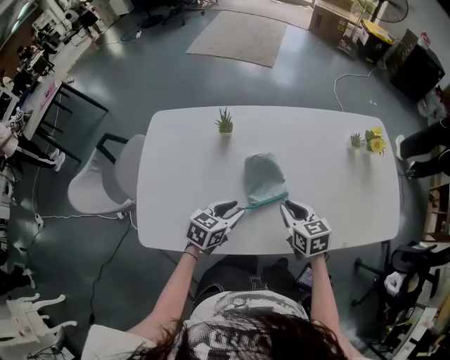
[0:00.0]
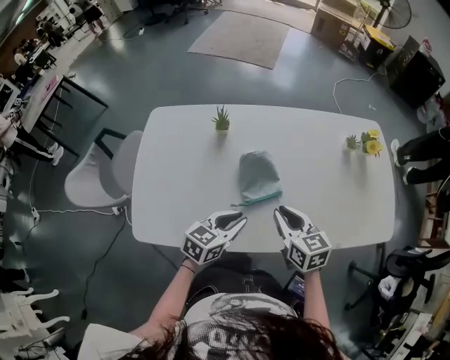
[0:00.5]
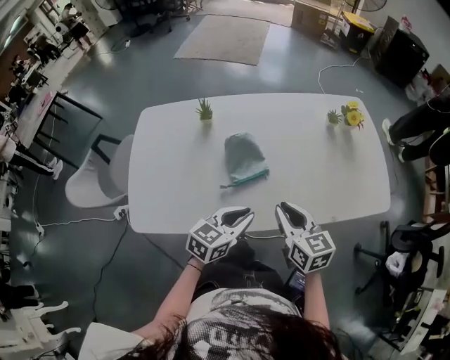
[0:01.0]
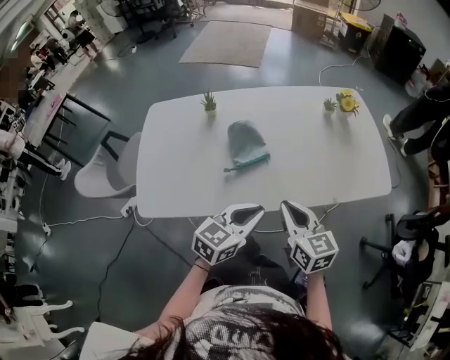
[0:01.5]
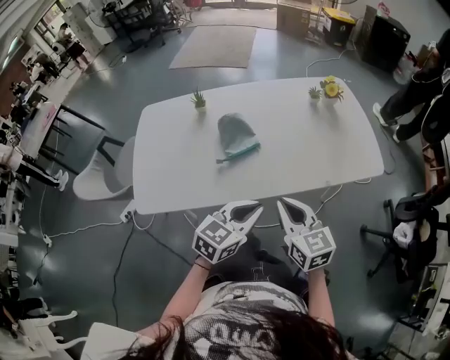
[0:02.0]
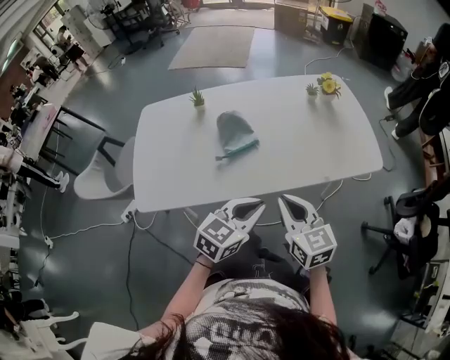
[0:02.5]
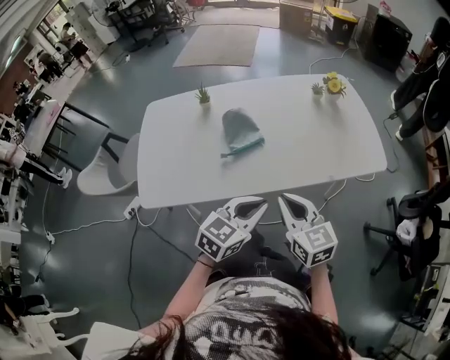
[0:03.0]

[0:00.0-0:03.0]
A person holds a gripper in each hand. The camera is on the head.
0:00.0 to 0:01.5: The right gripper travels backward, upward and to the right by some 20 cm, while the left gripper is displaced backward, to the right and upward by some 25 cm, and closes.
0:01.5 to 0:03.0: Both grippers move backward, approximately 5 cm.

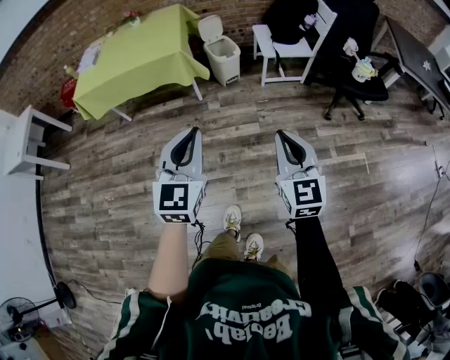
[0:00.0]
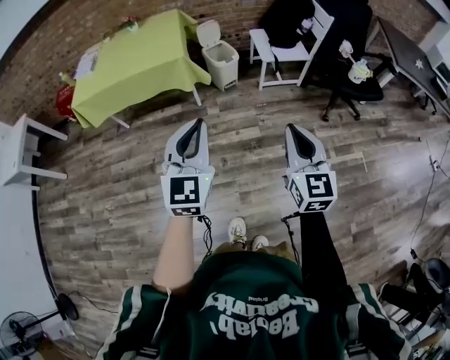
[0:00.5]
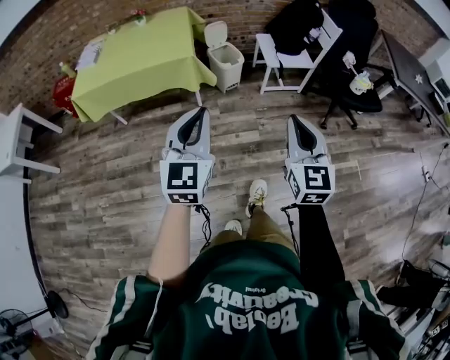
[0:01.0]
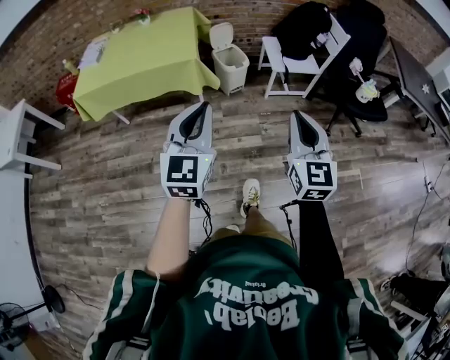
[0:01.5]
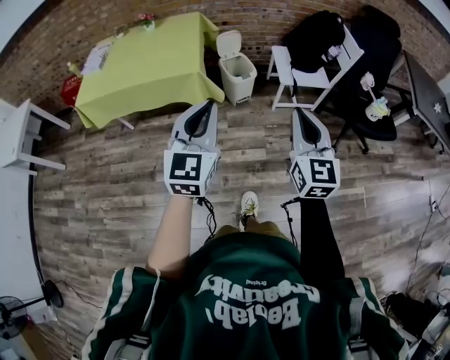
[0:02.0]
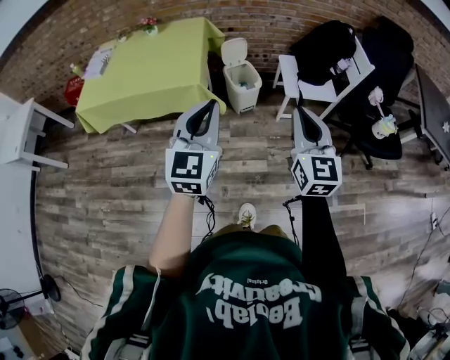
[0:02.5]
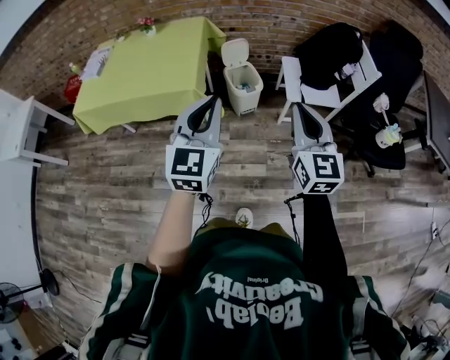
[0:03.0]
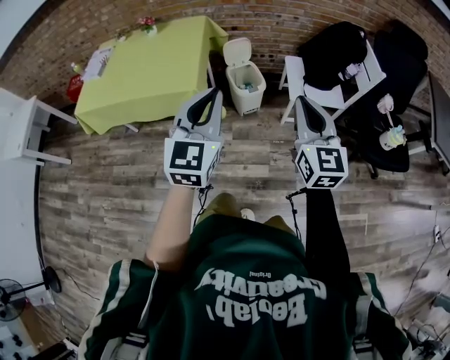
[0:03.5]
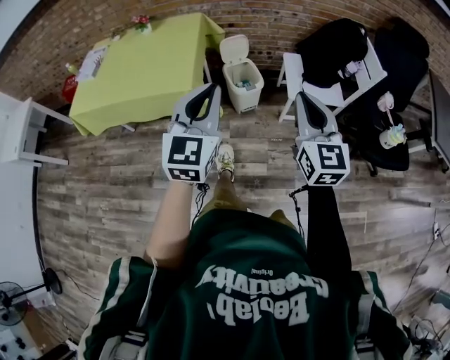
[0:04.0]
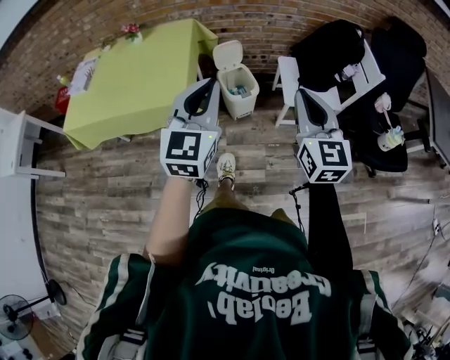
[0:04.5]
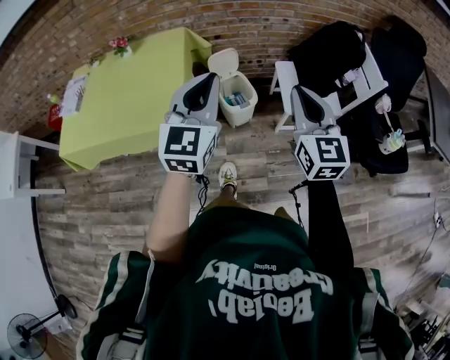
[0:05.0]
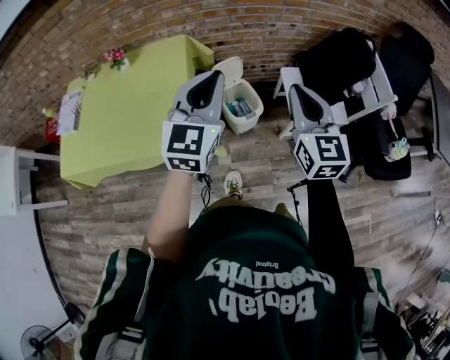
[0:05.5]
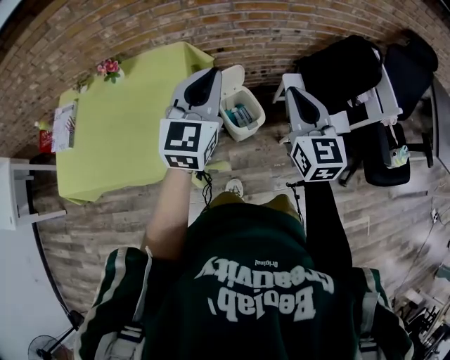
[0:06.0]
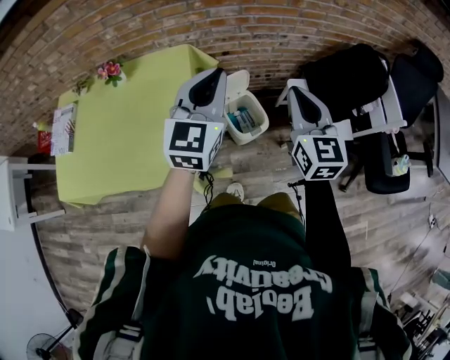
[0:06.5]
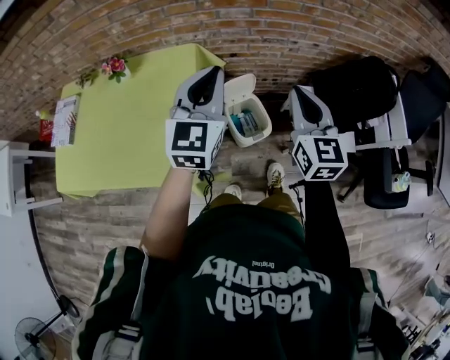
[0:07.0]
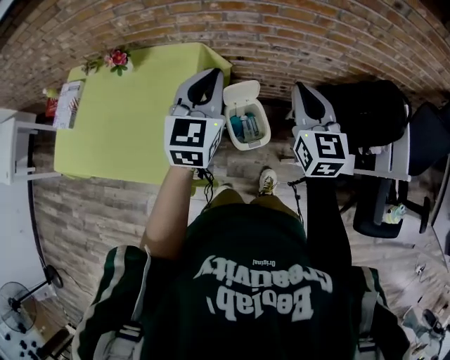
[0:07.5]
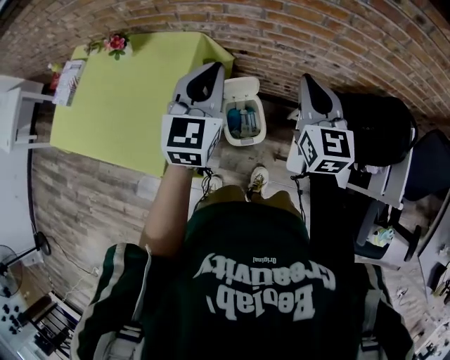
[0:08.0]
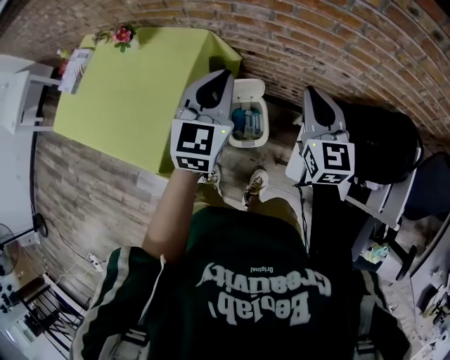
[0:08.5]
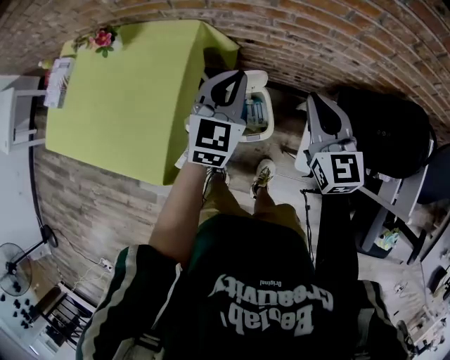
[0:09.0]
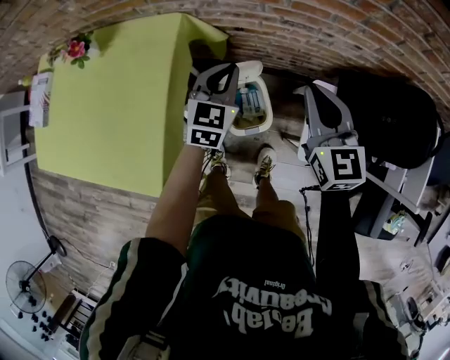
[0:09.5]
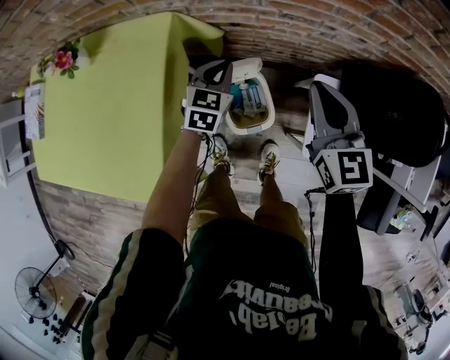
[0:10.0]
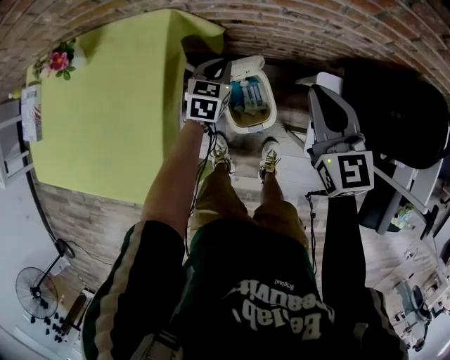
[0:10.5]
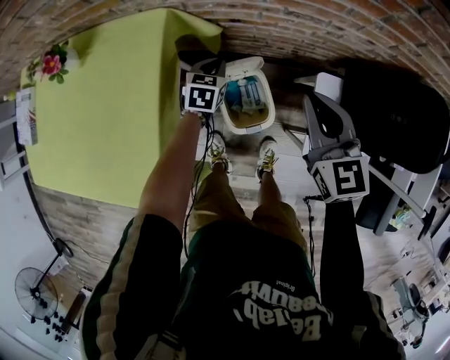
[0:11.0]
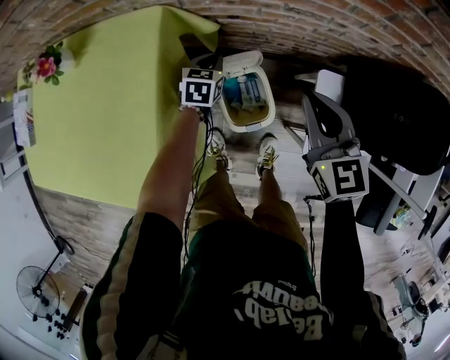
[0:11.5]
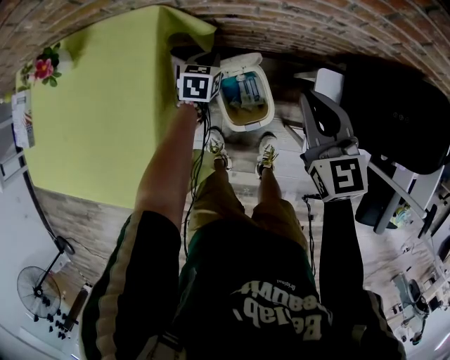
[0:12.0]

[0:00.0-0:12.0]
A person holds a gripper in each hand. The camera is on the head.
0:00.0 to 0:02.0: Both grippers travel together forward, roughly 25 cm.
0:02.0 to 0:04.0: The two grippers go some 20 cm forward.
0:04.0 to 0:06.0: Both grippers travel together forward, about 35 cm.
0:06.0 to 0:08.0: Both grippers travel together forward, about 20 cm. The left gripper turns by approximately 20 degrees.
0:08.0 to 0:10.0: The right gripper moves downward, roughly 15 cm; the left gripper shifts some 35 cm downward and forward, and changes its angle by roughly 30 degrees.
0:10.0 to 0:12.0: The right gripper heads downward, covering some 5 cm. The left gripper heads downward, covering some 15 cm.

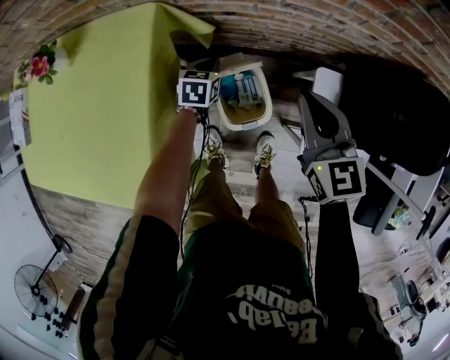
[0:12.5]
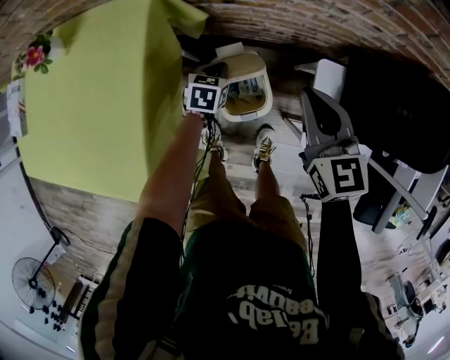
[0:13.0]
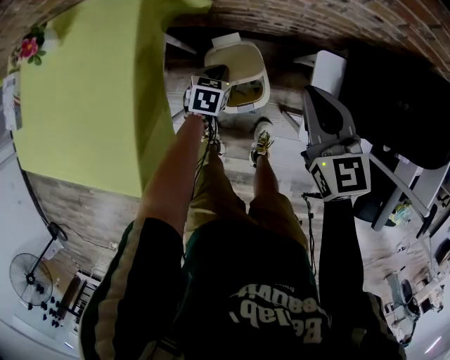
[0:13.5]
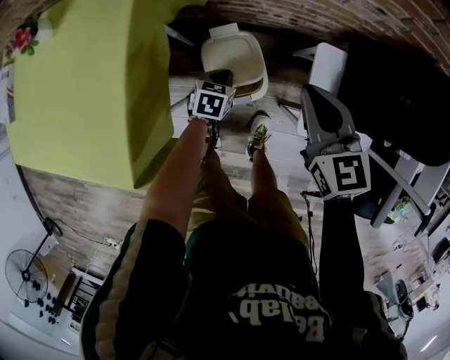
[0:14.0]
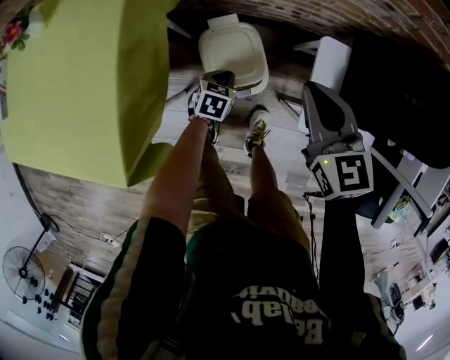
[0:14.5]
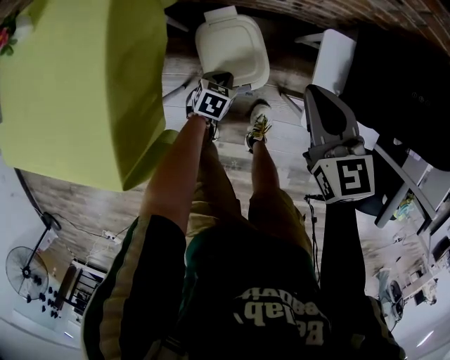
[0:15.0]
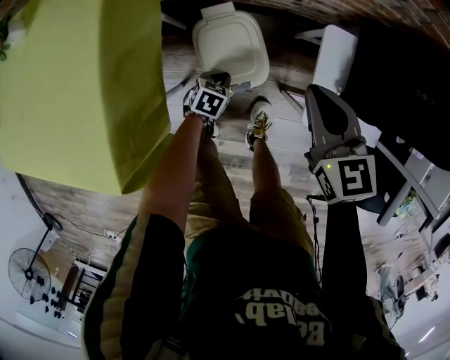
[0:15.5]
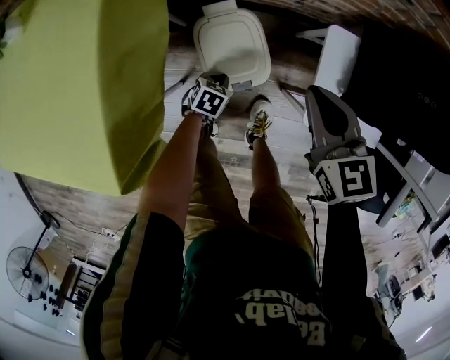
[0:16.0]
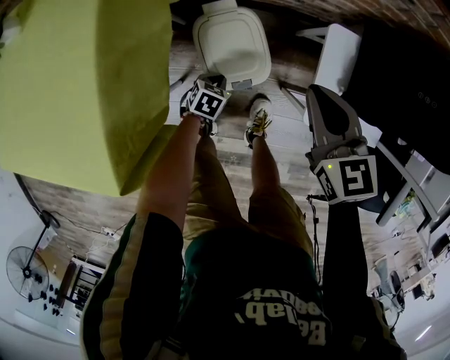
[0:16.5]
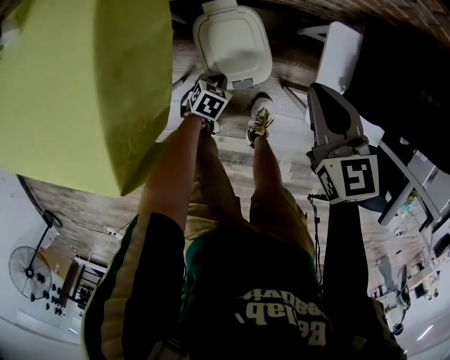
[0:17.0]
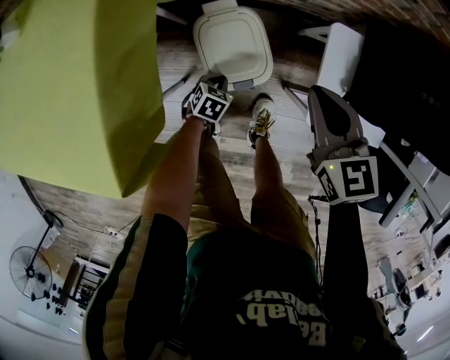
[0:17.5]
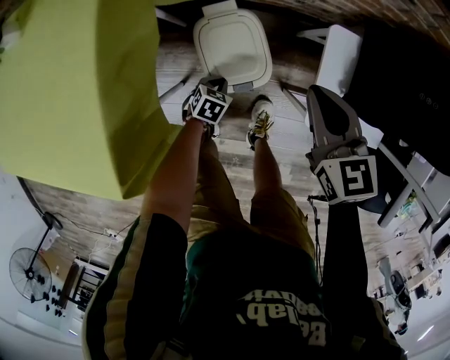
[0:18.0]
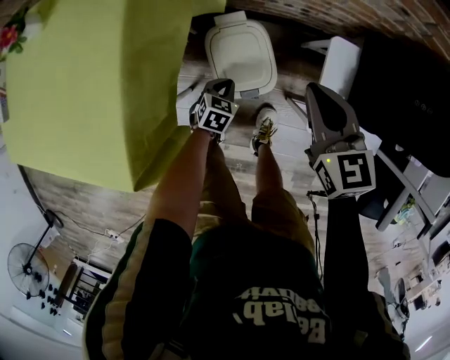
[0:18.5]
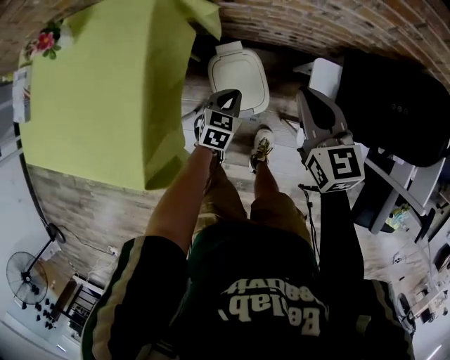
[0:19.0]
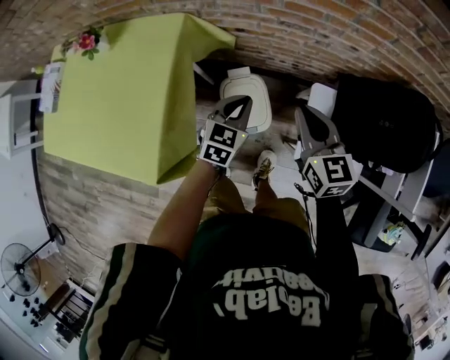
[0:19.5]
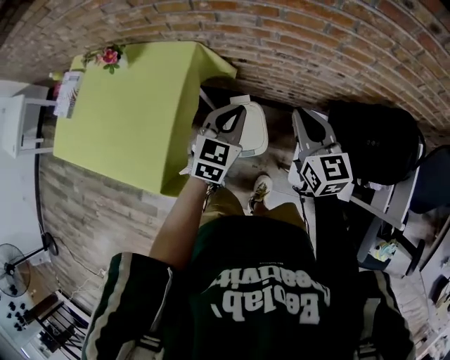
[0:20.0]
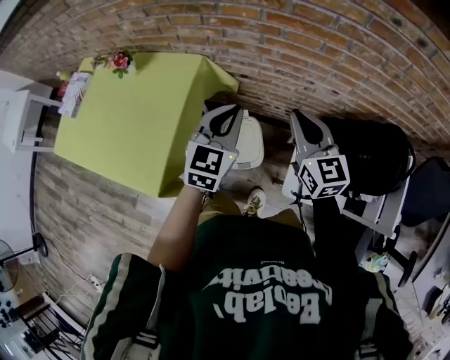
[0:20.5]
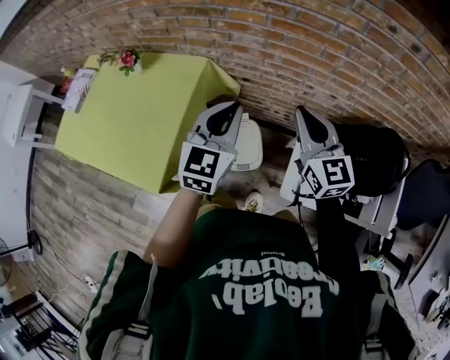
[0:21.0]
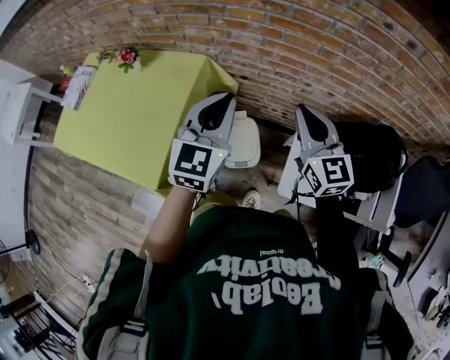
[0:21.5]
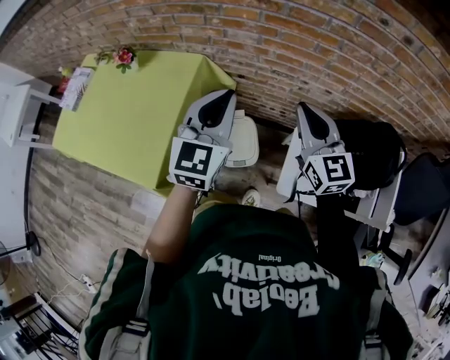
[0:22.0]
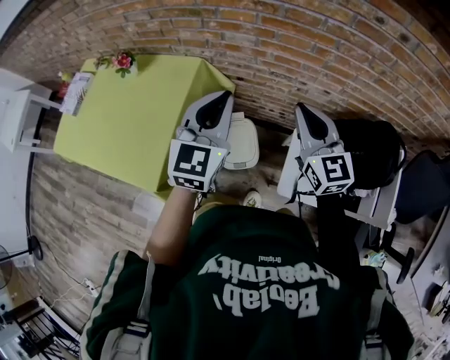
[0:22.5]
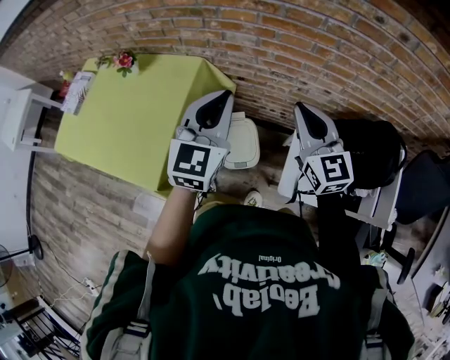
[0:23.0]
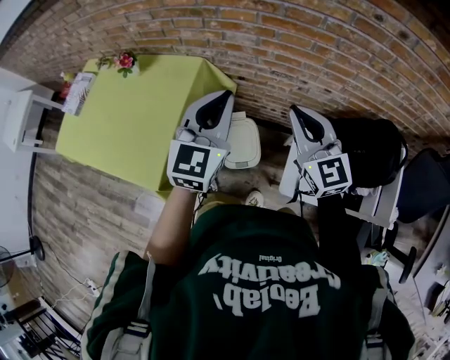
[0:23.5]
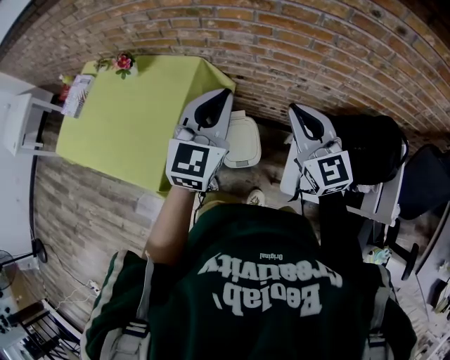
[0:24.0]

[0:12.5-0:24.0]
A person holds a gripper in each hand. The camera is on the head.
0:12.5 to 0:14.5: The left gripper moves backward, downward and to the right, about 20 cm, while the right gripper travels backward and downward by about 10 cm.
0:14.5 to 0:16.5: The right gripper moves downward, about 5 cm. Meanwhile the left gripper moves downward and backward, approximately 10 cm.
0:16.5 to 0:18.5: The left gripper heads upward, covering about 5 cm.
0:18.5 to 0:20.0: The left gripper is displaced upward by approximately 50 cm, and tilts its fingers approximately 30 degrees upward. The right gripper moves upward, roughly 20 cm.
0:20.0 to 0:22.0: The left gripper shifts about 20 cm upward, and changes its angle by roughly 20 degrees, while the right gripper shifts some 10 cm upward.
0:22.0 to 0:24.0: The grippers make only small movements.
